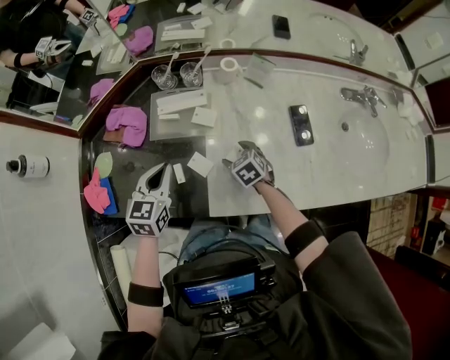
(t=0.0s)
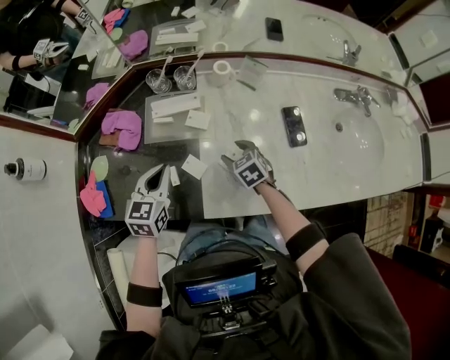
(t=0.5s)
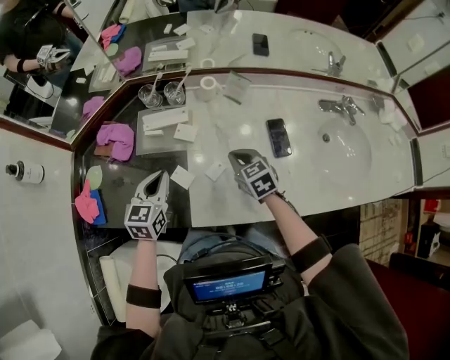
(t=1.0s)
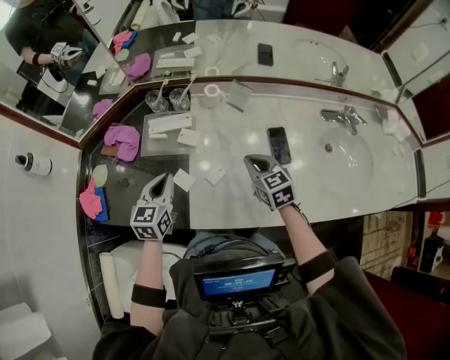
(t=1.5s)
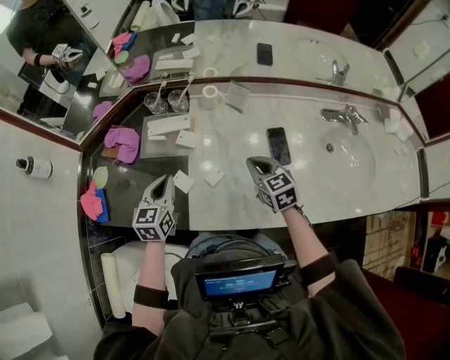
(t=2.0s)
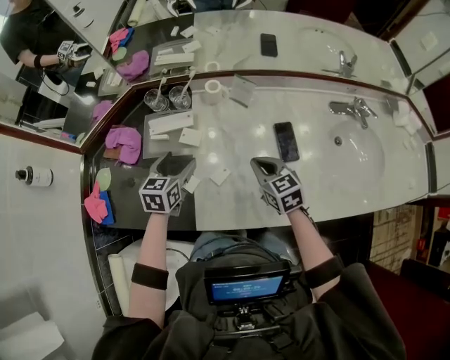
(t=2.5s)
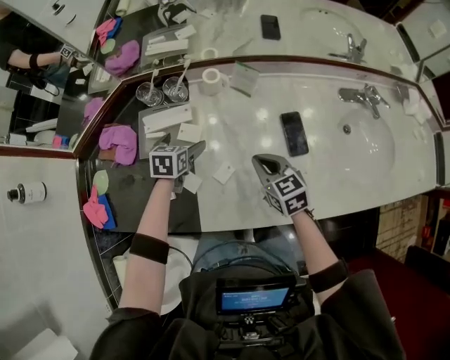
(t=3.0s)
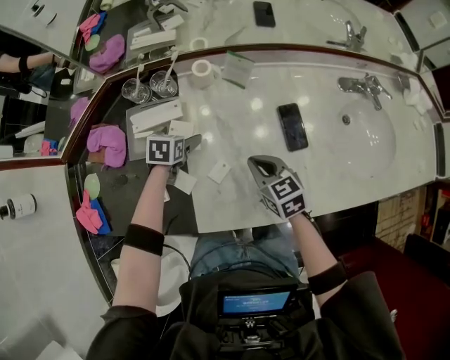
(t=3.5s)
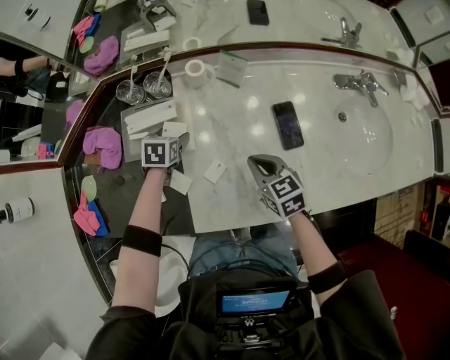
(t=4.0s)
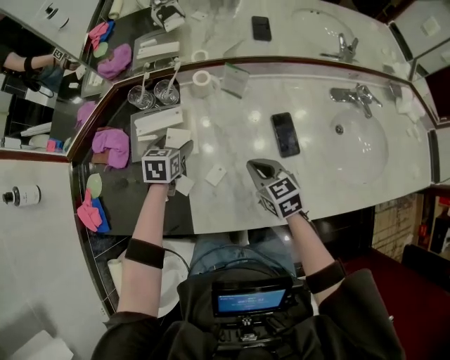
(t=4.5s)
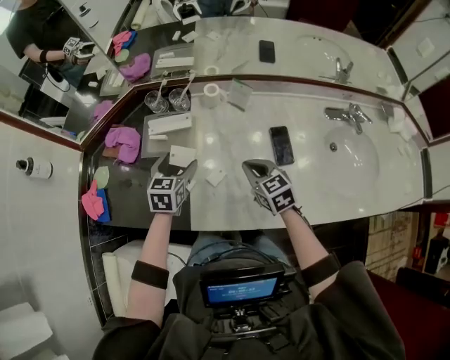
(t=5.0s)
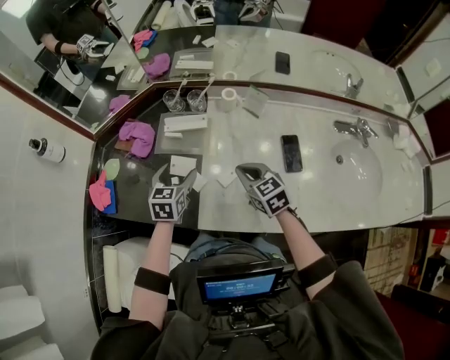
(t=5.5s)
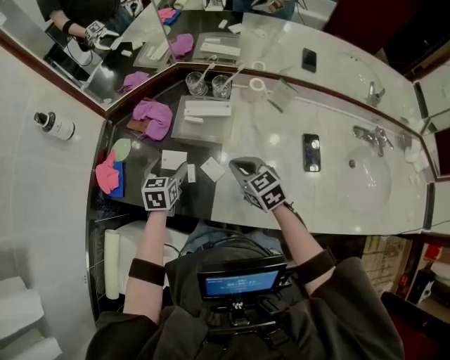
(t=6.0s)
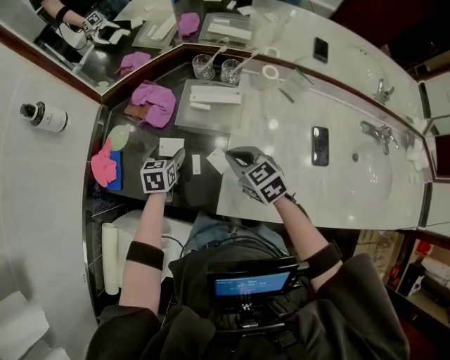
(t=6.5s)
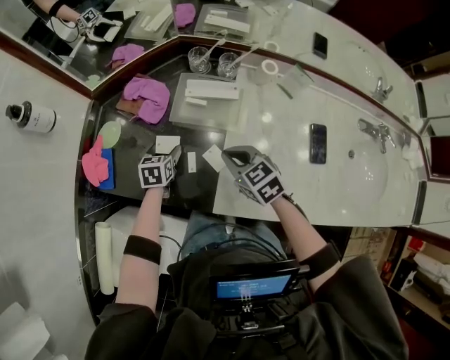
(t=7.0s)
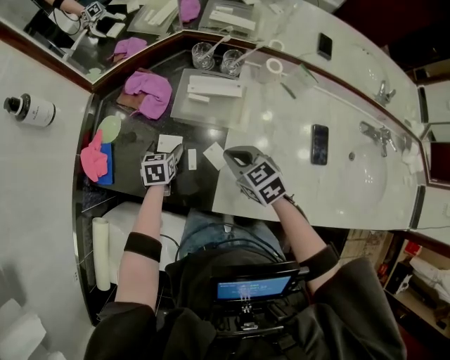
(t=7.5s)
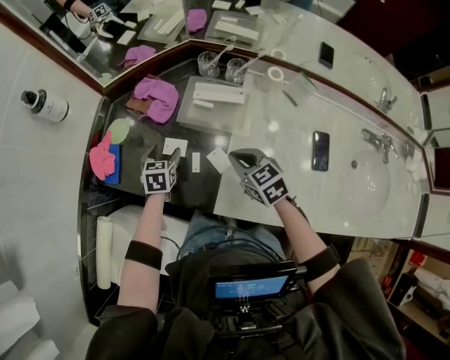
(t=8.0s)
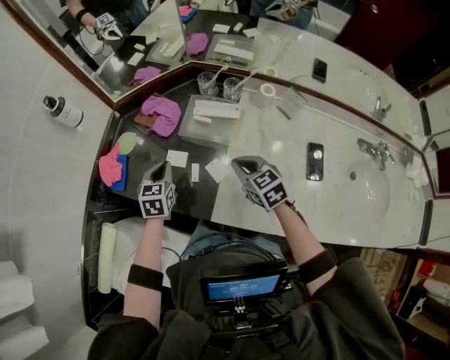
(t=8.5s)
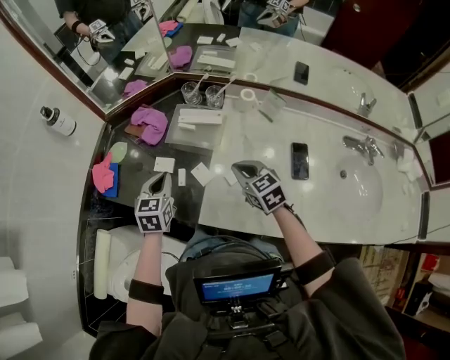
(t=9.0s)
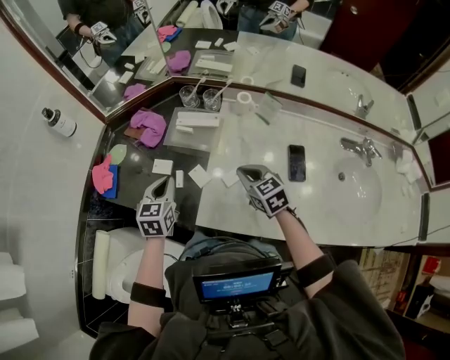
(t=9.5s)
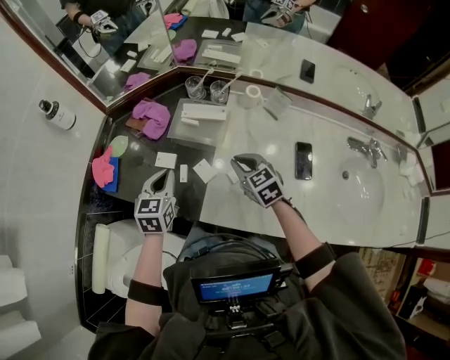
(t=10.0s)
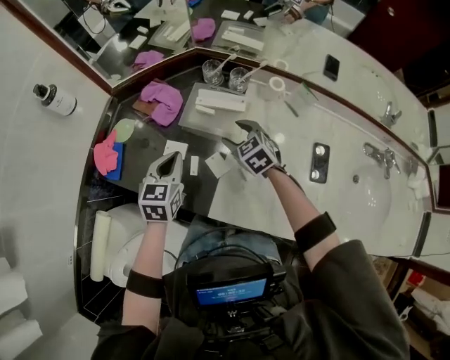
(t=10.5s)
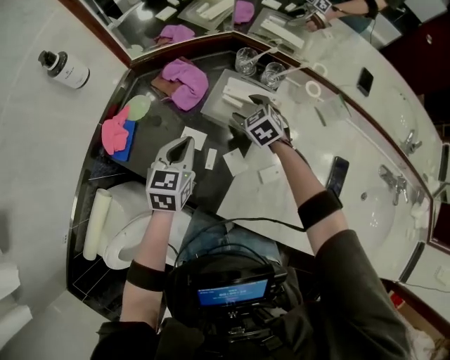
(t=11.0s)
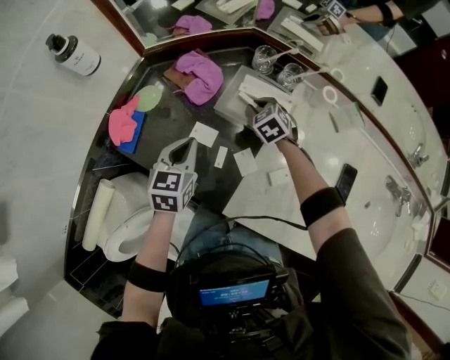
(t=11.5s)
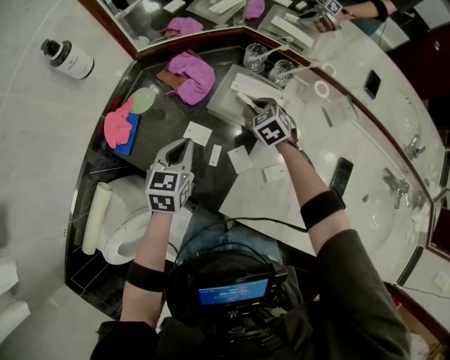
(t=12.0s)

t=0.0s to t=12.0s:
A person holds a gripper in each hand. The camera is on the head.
t=0.0s to t=2.0s: The right gripper travels upward and to the right by some 20 cm, rotates roughly 20 degrees, and closes its fingers; the left gripper is displaced to the right by some 10 cm.
t=2.0s to t=4.0s: The right gripper is displaced downward by some 5 cm; the left gripper travels downward and forward by roughly 25 cm, points its fingers roughly 30 degrees further downward, and opens.
t=4.0s to t=6.0s: The right gripper is displaced to the left by some 20 cm, and turns by approximately 20 degrees. Meanwhile the left gripper shifts roughly 25 cm to the left, backward and upward, and swivels some 30 degrees.
t=6.0s to t=8.0s: The right gripper moves approximately 5 cm. The left gripper is displaced downward and to the left by about 10 cm.
t=8.0s to t=10.0s: The left gripper goes roughly 20 cm upward, backward and to the right, and closes its fingers. The right gripper goes roughly 10 cm to the right.
t=10.0s to t=12.0s: The left gripper is displaced forward, to the left and downward by approximately 10 cm, while the right gripper travels forward and downward by some 25 cm, changes its angle by roughly 20 degrees, and opens, then closes again.

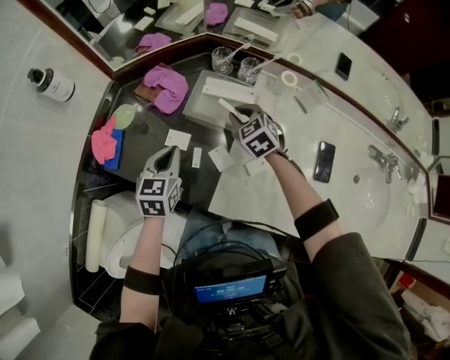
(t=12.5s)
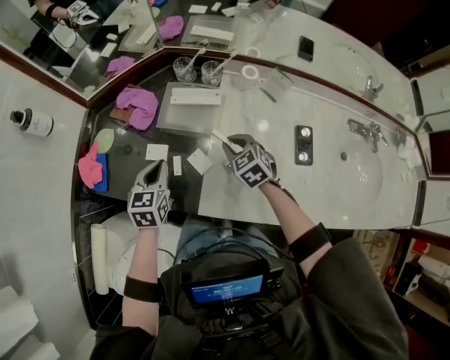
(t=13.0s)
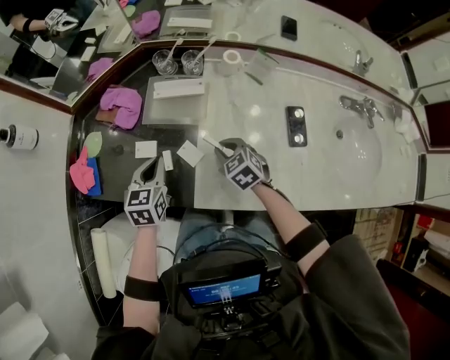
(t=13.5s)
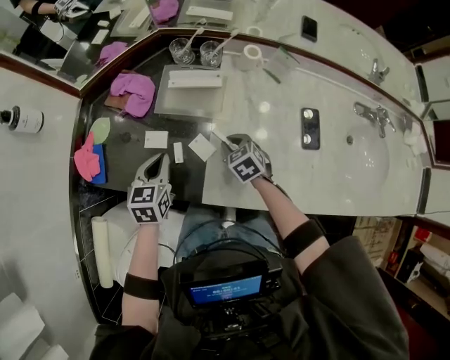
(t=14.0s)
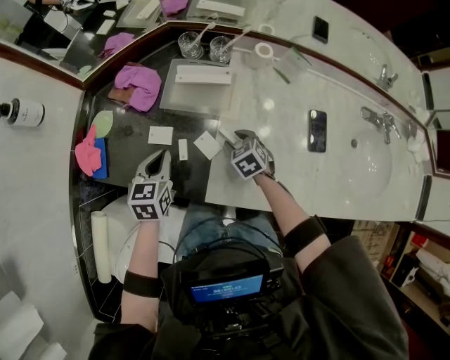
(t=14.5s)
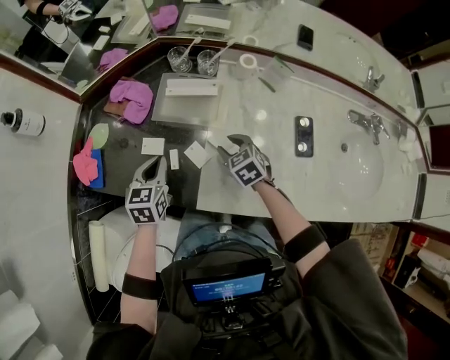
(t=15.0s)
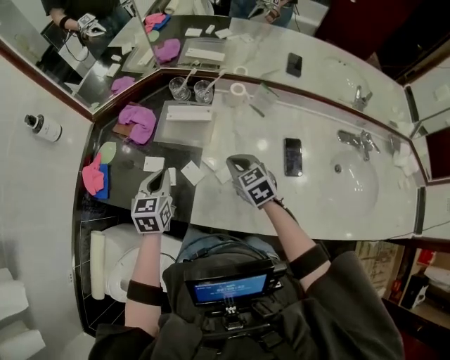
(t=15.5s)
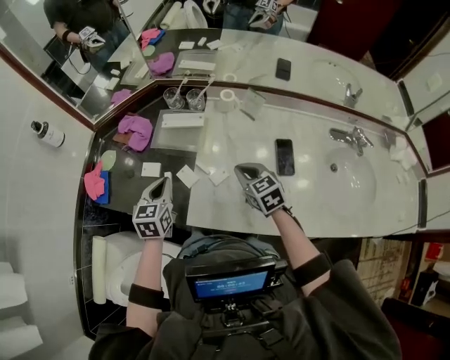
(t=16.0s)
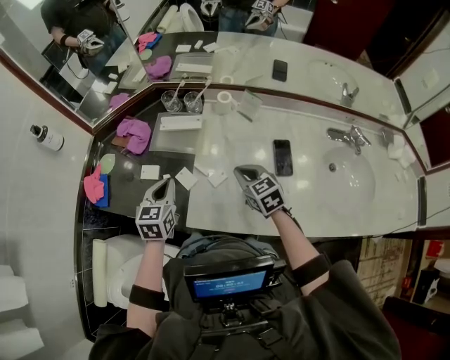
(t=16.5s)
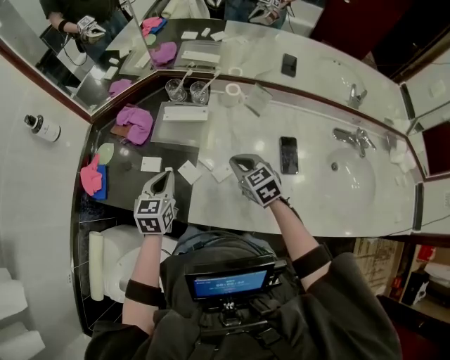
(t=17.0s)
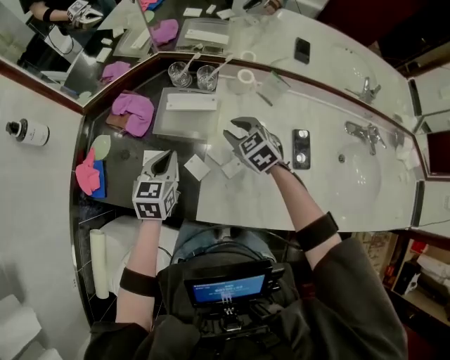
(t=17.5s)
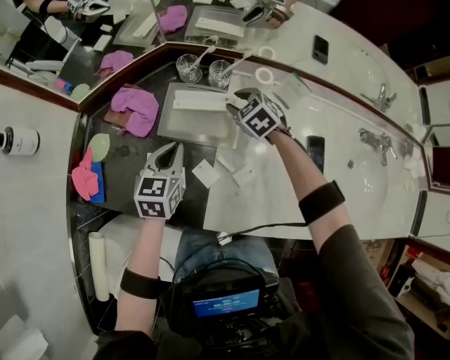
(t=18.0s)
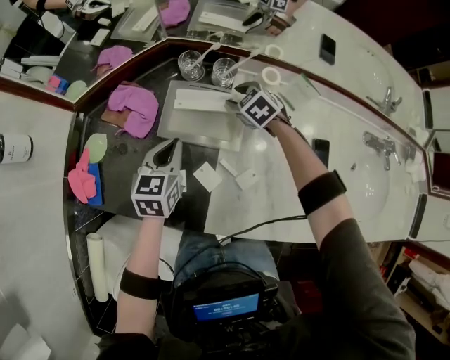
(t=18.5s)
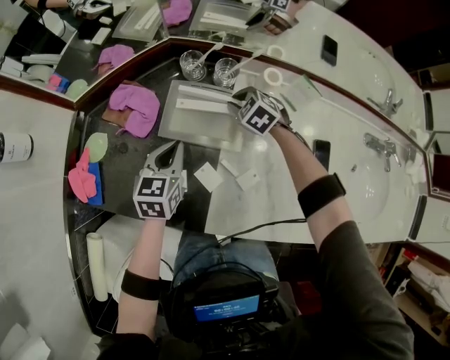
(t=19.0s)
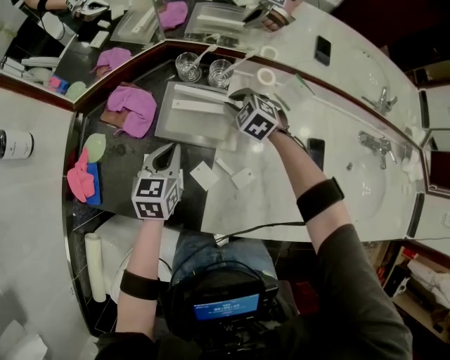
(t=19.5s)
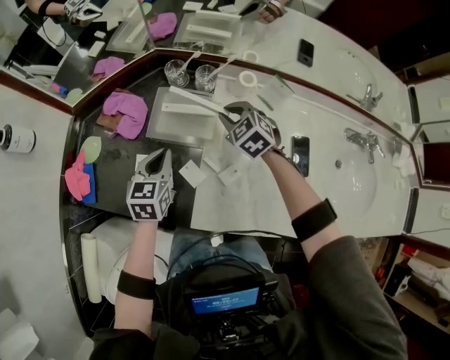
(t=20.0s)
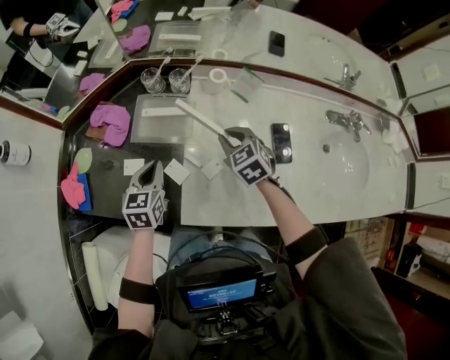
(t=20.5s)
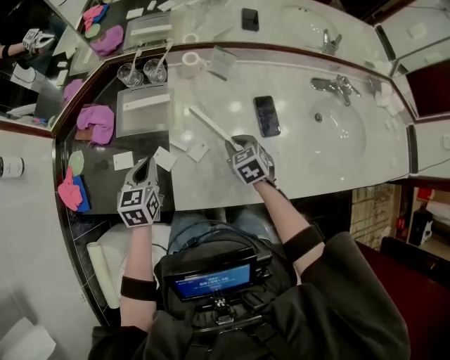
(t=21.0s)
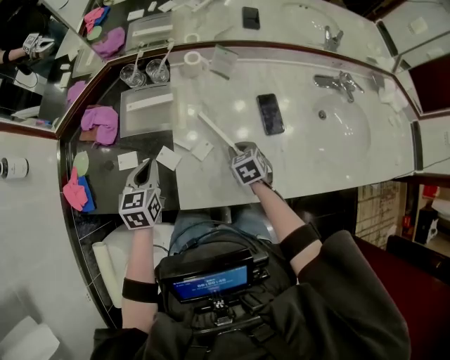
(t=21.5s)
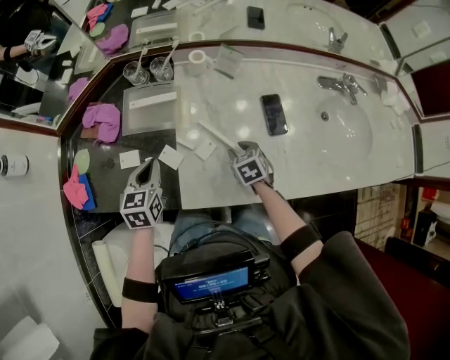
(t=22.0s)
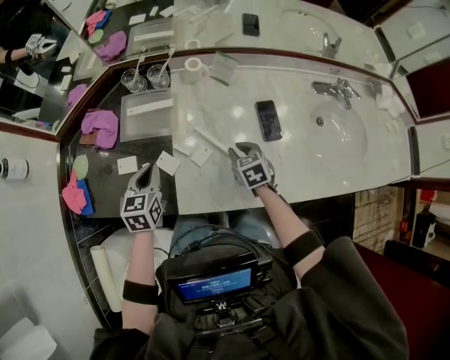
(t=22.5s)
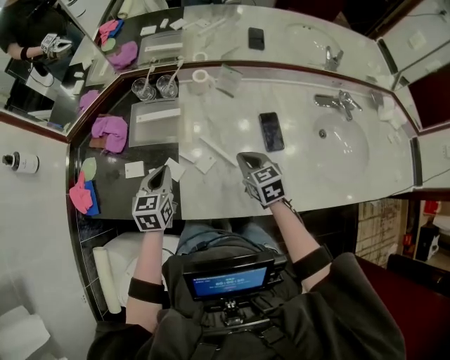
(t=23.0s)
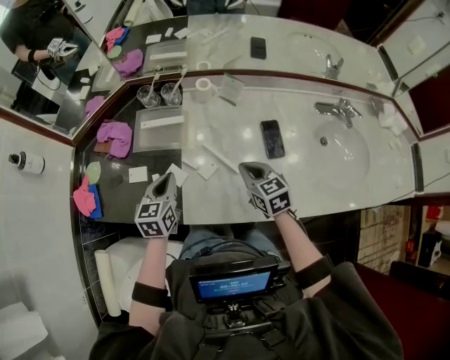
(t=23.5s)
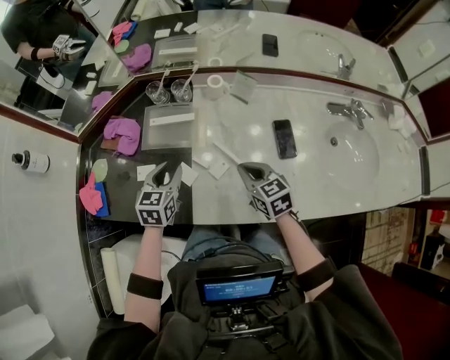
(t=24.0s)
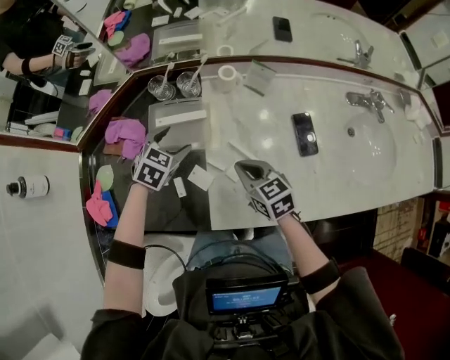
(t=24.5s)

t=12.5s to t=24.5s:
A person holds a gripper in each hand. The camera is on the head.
t=12.5s to t=14.5s: The right gripper moves backward and downward, approximately 20 cm, and changes its angle by approximately 20 degrees.
t=14.5s to t=16.5s: The right gripper goes about 20 cm upward and to the right, swivels roughly 20 degrees, and closes its fingers. Meanwhile the left gripper heads to the right and upward, covering roughly 15 cm.
t=16.5s to t=18.5s: The right gripper heads forward and downward, covering some 30 cm, swivels about 30 degrees, and opens up, while the left gripper is displaced forward and downward by approximately 20 cm.
t=18.5s to t=20.5s: The left gripper is displaced backward by some 10 cm. Meanwhile the right gripper goes roughly 20 cm backward and upward.
t=20.5s to t=22.5s: The right gripper travels backward, to the right and downward by about 15 cm, and changes its angle by about 30 degrees.
t=22.5s to t=24.5s: The right gripper shifts some 15 cm to the left and upward, and turns by roughly 20 degrees; the left gripper heads forward, covering about 15 cm, rotates roughly 40 degrees, and opens its fingers.

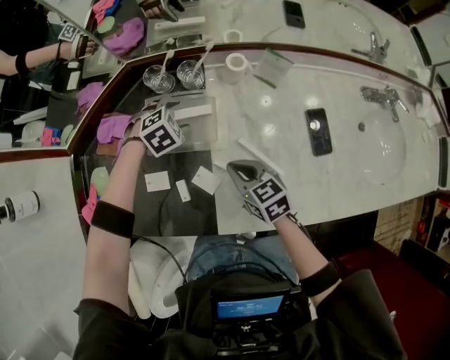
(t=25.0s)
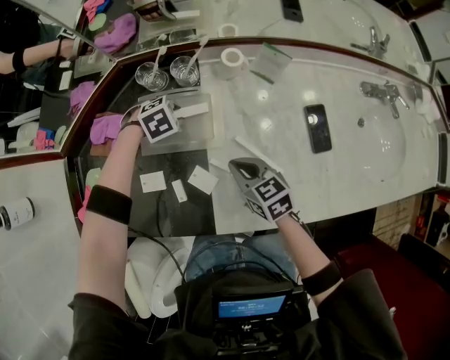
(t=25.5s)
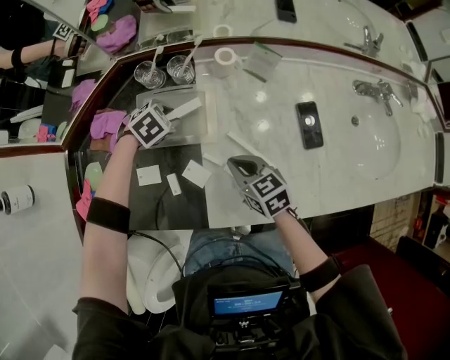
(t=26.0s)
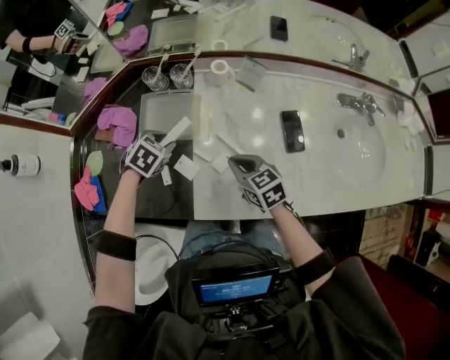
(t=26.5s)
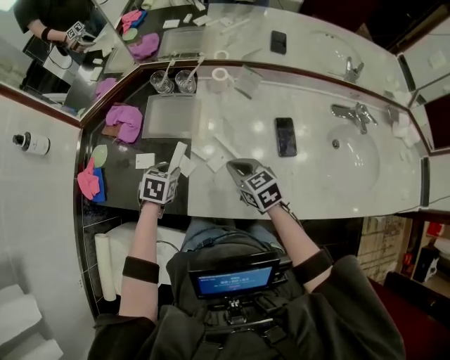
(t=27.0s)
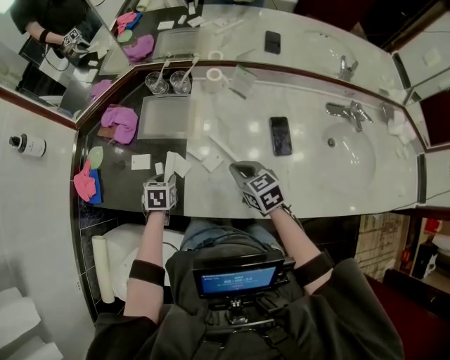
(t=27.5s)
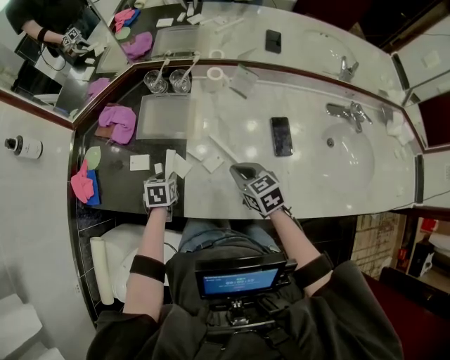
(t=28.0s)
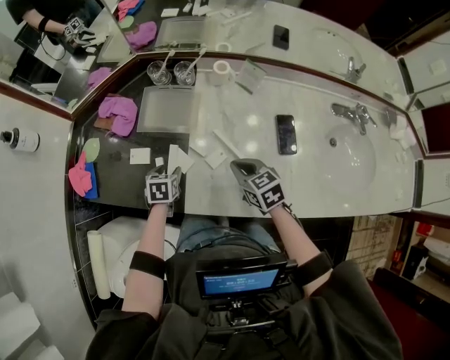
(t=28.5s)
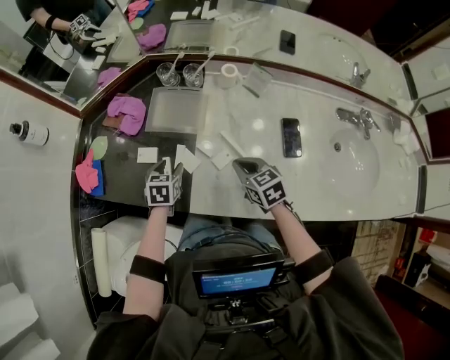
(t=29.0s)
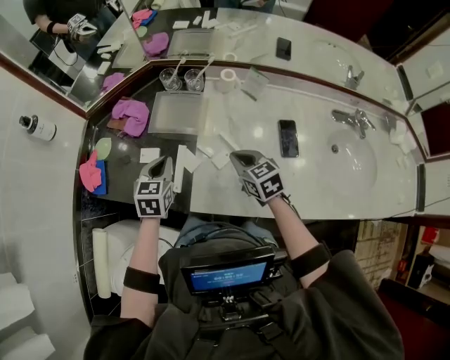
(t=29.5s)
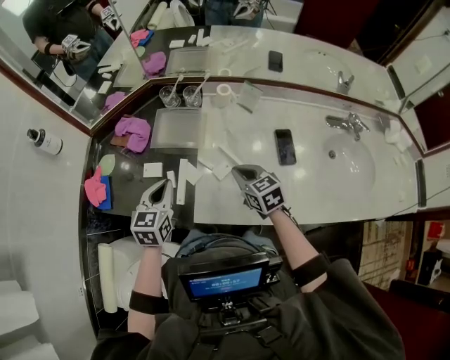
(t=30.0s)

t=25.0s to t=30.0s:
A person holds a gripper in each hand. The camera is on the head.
t=25.0s to t=27.5s: The left gripper moves about 5 cm upward and comes back, rotates around the line of its fingers by about 60 degrees, counterclockwise from behind, and closes its fingers, while the right gripper ends up roughly 15 cm from where it was.
t=27.5s to t=30.0s: The left gripper is displaced upward by roughly 15 cm, and tips its fingers upward by about 30 degrees.
